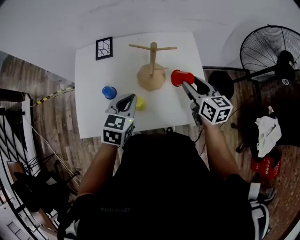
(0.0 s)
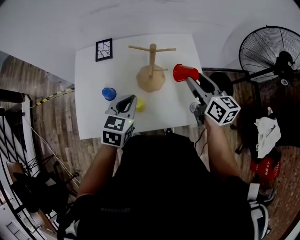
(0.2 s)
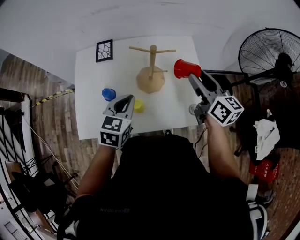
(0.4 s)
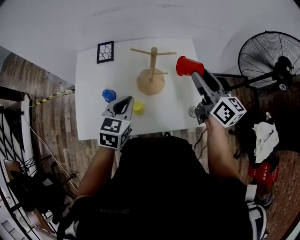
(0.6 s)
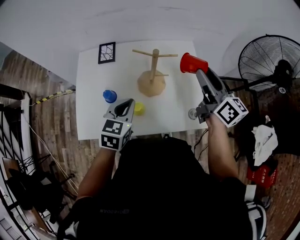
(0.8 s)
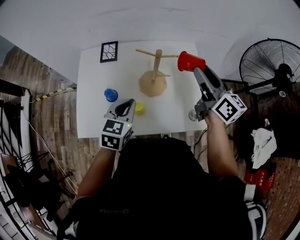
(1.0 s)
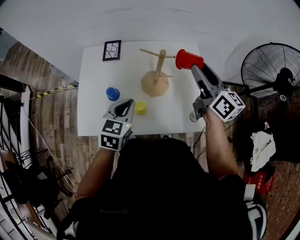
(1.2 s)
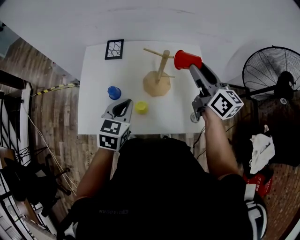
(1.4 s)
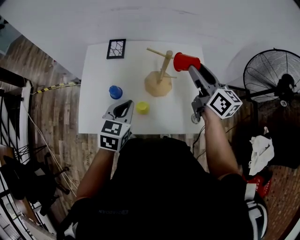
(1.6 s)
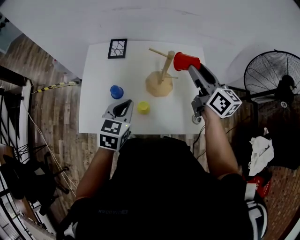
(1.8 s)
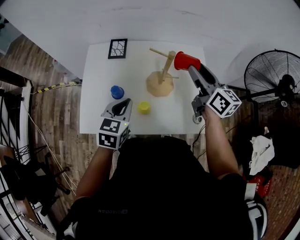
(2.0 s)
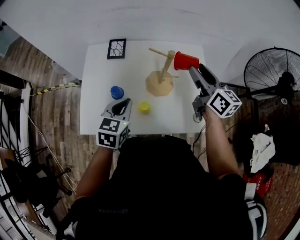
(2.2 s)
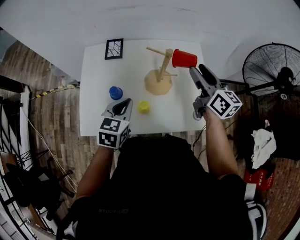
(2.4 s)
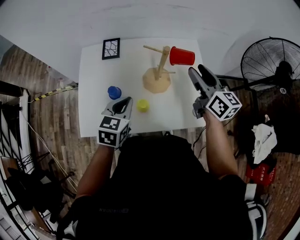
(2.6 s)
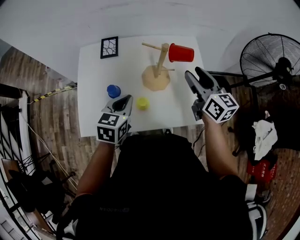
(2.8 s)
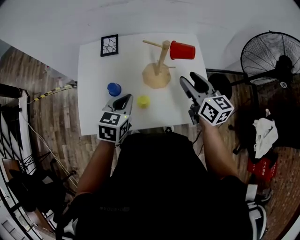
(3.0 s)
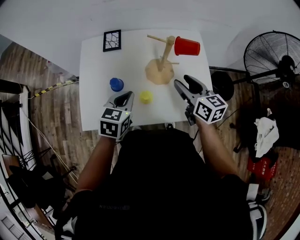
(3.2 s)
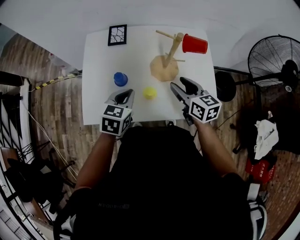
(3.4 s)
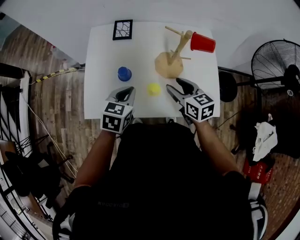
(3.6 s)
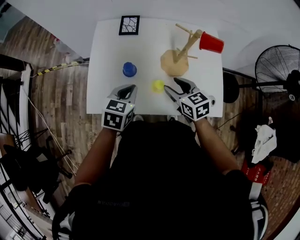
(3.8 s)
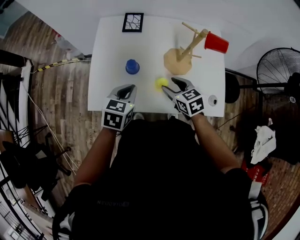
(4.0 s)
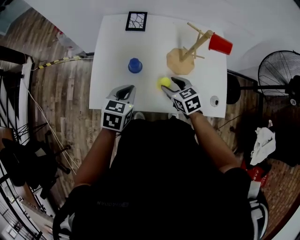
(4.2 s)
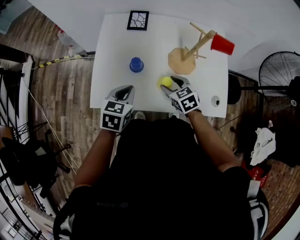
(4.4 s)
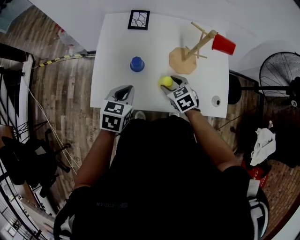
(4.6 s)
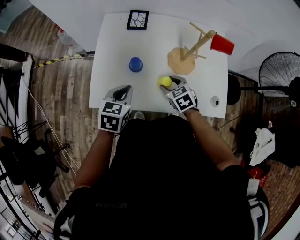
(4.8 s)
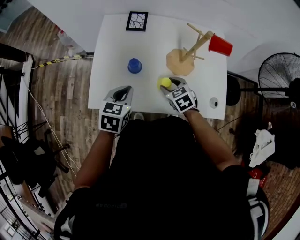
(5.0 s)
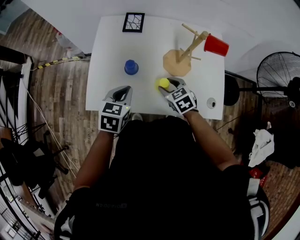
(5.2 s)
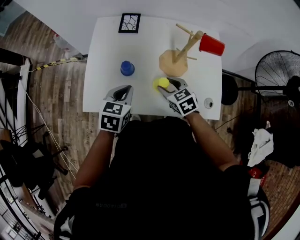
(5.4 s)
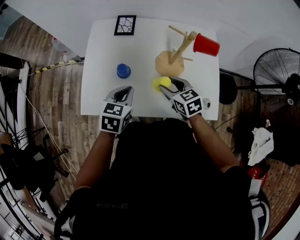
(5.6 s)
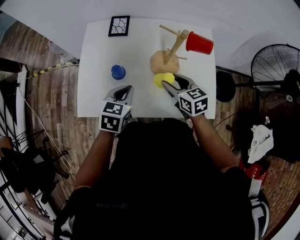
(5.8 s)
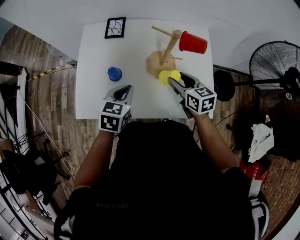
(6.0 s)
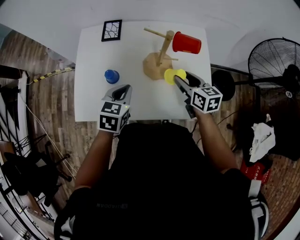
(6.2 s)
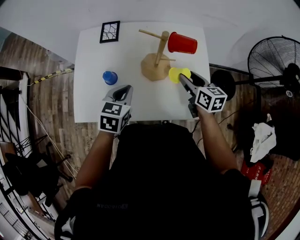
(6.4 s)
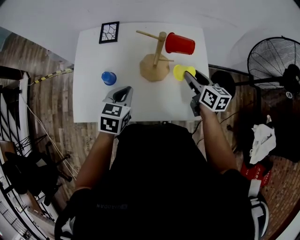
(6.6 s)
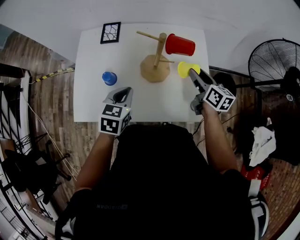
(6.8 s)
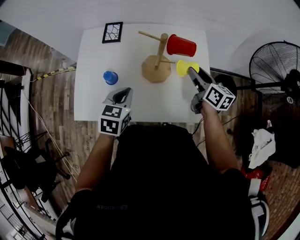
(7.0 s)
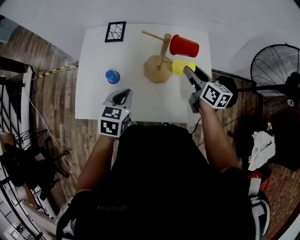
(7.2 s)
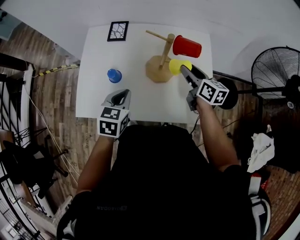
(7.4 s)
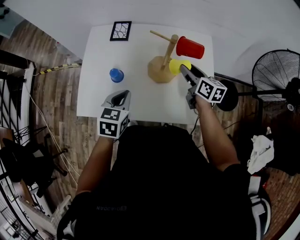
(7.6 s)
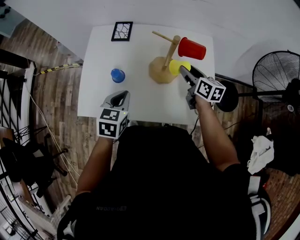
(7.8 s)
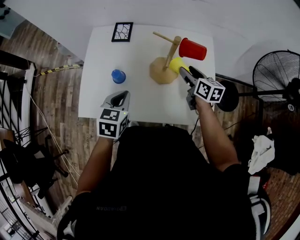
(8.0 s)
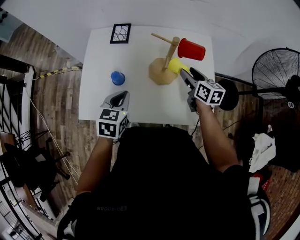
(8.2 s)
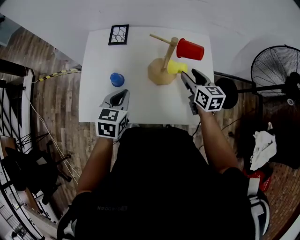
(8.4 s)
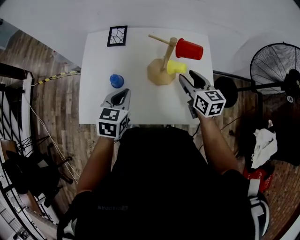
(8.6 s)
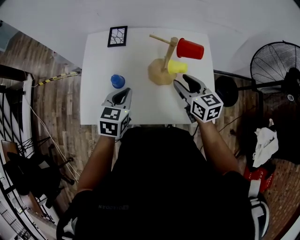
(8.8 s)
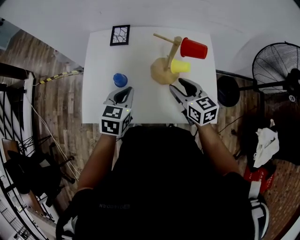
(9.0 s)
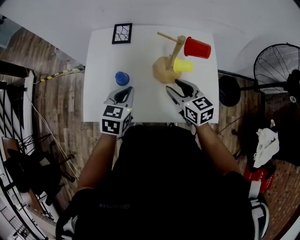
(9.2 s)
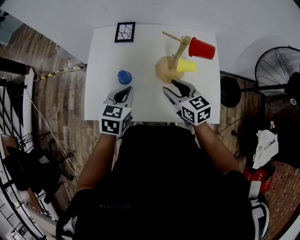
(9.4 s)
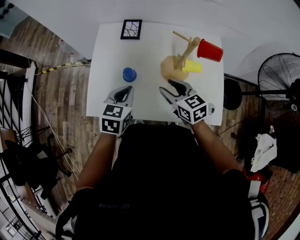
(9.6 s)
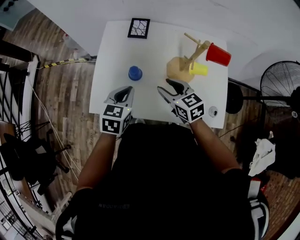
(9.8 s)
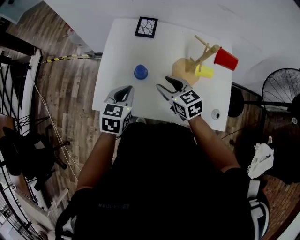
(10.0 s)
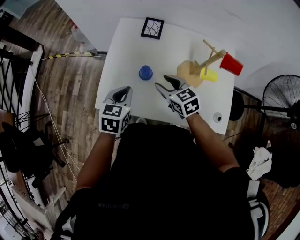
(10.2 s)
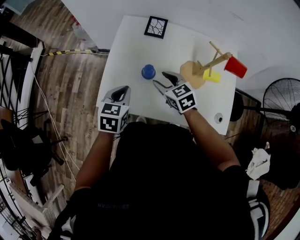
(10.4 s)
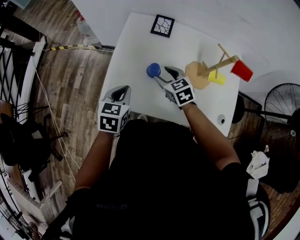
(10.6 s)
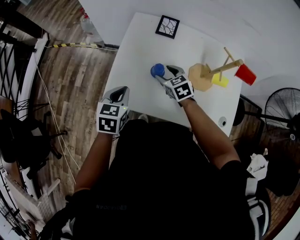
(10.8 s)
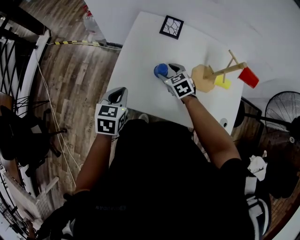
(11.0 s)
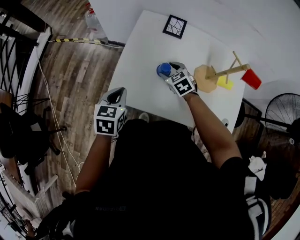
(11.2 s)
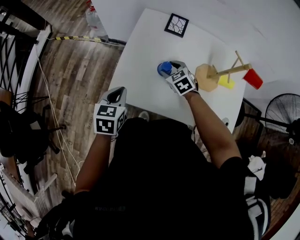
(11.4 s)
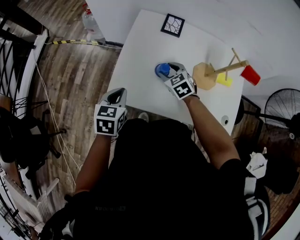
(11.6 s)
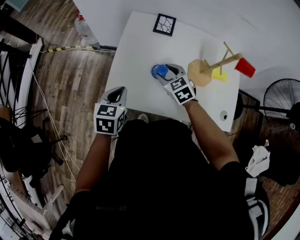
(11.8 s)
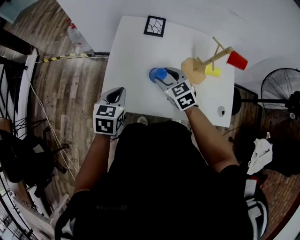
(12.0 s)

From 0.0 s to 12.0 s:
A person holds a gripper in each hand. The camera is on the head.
From 0.0 s to 1.6 s: The right gripper moves upward and forward, roughly 10 cm, and turns by approximately 20 degrees.
From 1.6 s to 3.0 s: The right gripper heads downward and backward, covering approximately 10 cm.
From 3.0 s to 4.4 s: The right gripper moves downward and to the left, about 25 cm, and tips its fingers downward by roughly 30 degrees. Meanwhile the left gripper heads to the left and downward, covering approximately 10 cm.
From 4.4 s to 6.0 s: The left gripper is displaced to the right by about 10 cm. Meanwhile the right gripper heads to the right and upward, covering approximately 15 cm, and rotates about 30 degrees.
From 6.0 s to 7.6 s: The right gripper goes about 10 cm forward and to the right.
From 7.6 s to 9.0 s: The right gripper travels to the left and backward by some 10 cm, and swivels approximately 20 degrees.
From 9.0 s to 10.4 s: The grippers both shift to the left by roughly 20 cm. The right gripper turns by roughly 20 degrees.
From 10.4 s to 12.0 s: The right gripper goes downward and returns, some 10 cm each way. Meanwhile the left gripper shifts about 5 cm to the left.

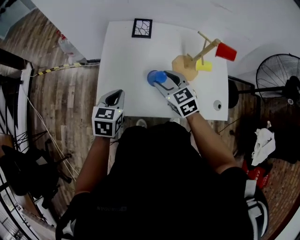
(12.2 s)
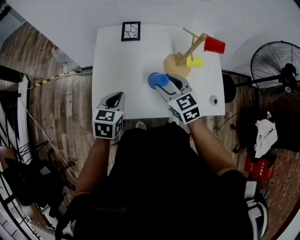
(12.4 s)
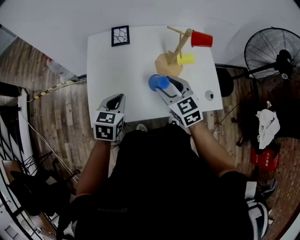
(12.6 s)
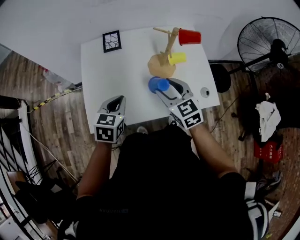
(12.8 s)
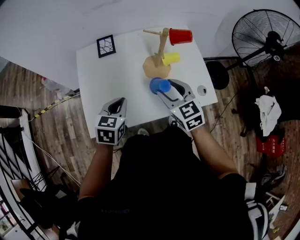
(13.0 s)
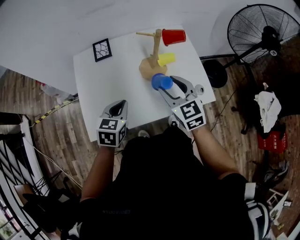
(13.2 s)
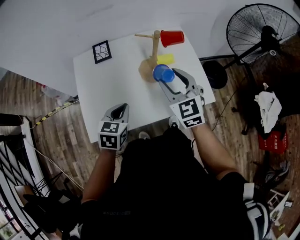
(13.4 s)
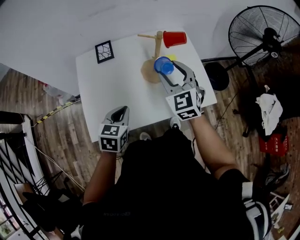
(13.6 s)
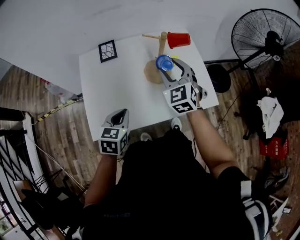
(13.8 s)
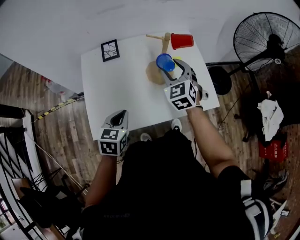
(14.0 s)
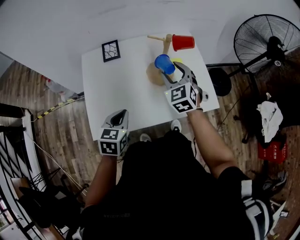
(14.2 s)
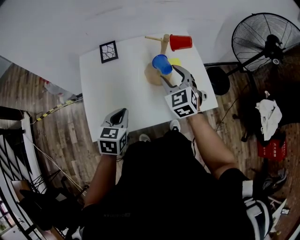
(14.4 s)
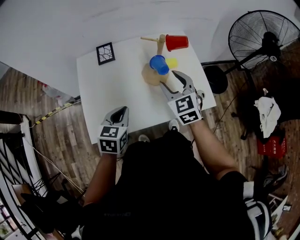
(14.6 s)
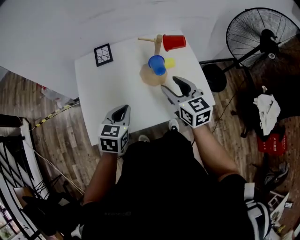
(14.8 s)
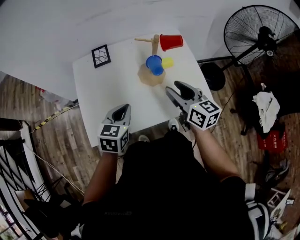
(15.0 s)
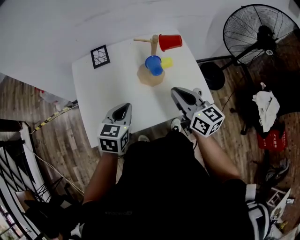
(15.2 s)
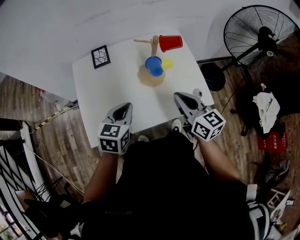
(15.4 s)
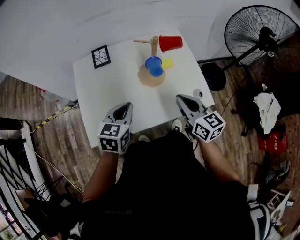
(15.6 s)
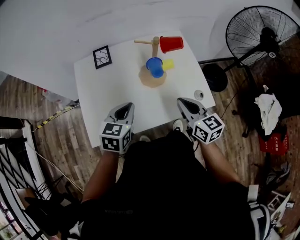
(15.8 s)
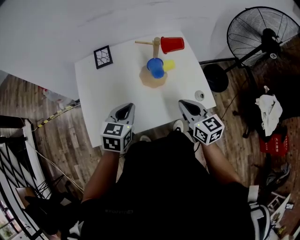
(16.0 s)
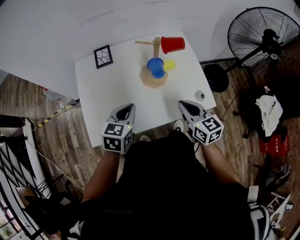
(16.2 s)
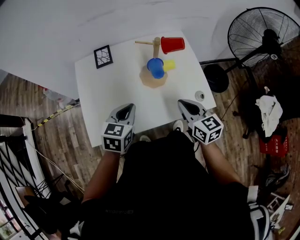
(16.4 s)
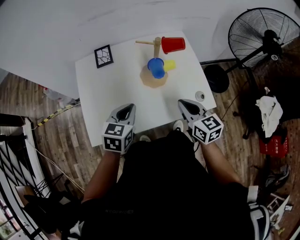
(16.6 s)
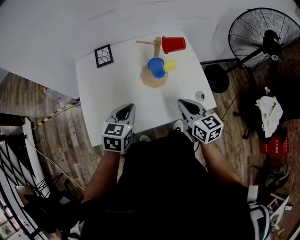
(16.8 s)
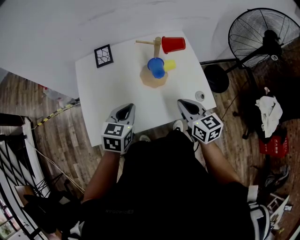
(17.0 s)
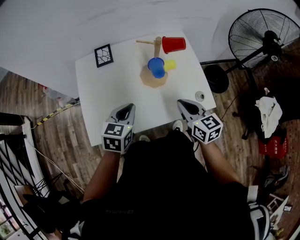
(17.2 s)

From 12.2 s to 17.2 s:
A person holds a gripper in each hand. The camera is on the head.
From 12.2 s to 13.8 s: The left gripper changes place by about 10 cm, while the right gripper shifts by roughly 20 cm, and changes its angle by some 40 degrees.
From 13.8 s to 15.6 s: The left gripper shifts by roughly 5 cm; the right gripper travels backward and to the right by some 15 cm, rolls clockwise, seen from behind, by about 40 degrees, and closes up.
From 15.6 s to 17.2 s: There are only small adjustments of the grippers.

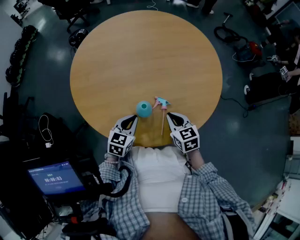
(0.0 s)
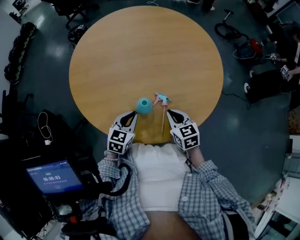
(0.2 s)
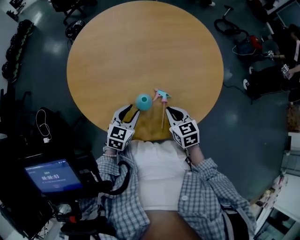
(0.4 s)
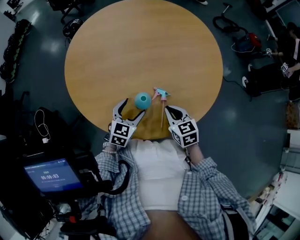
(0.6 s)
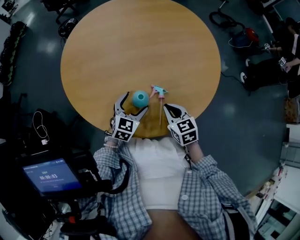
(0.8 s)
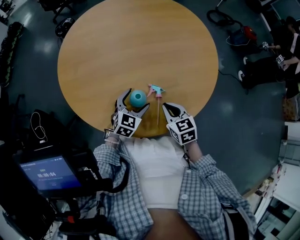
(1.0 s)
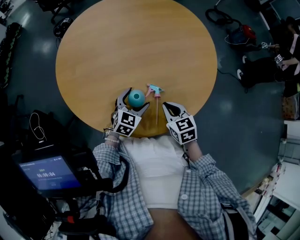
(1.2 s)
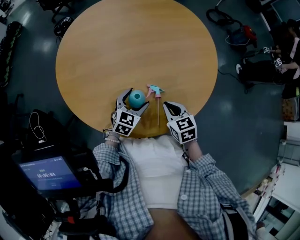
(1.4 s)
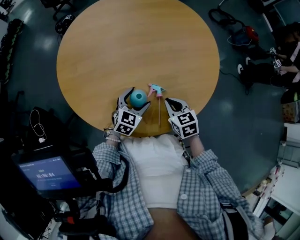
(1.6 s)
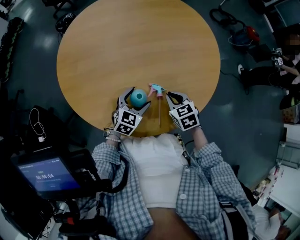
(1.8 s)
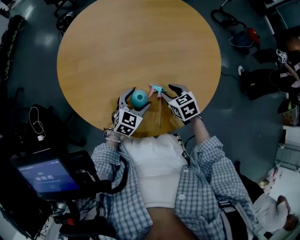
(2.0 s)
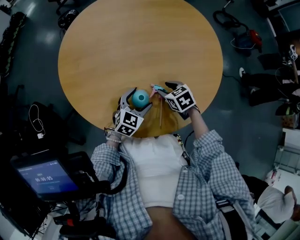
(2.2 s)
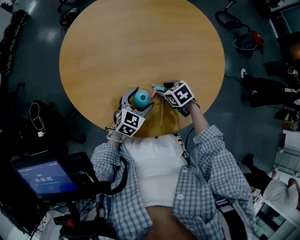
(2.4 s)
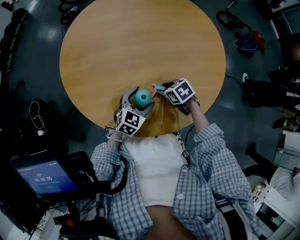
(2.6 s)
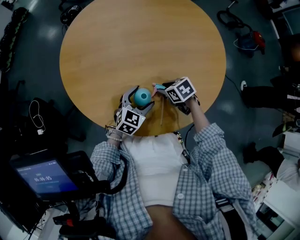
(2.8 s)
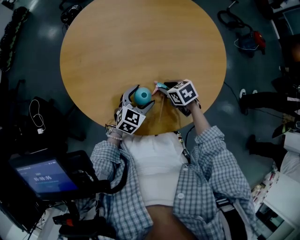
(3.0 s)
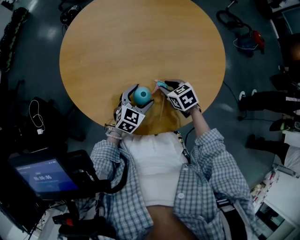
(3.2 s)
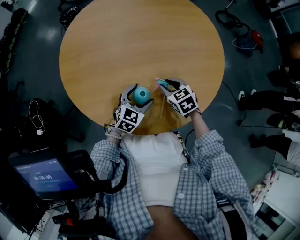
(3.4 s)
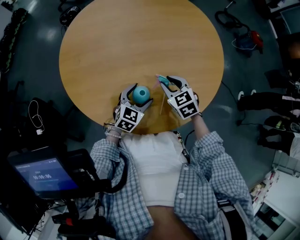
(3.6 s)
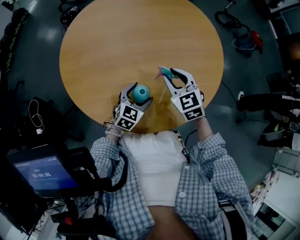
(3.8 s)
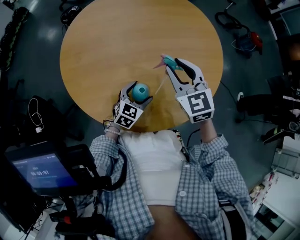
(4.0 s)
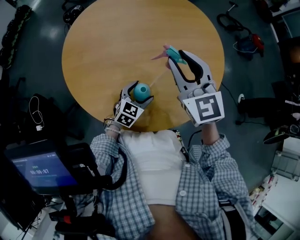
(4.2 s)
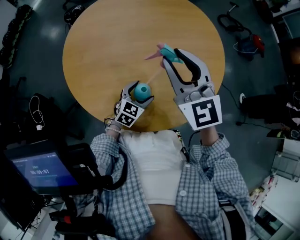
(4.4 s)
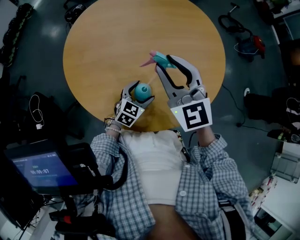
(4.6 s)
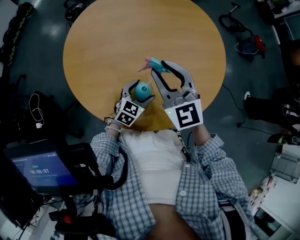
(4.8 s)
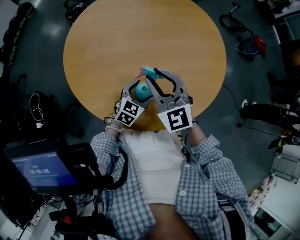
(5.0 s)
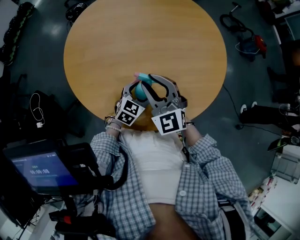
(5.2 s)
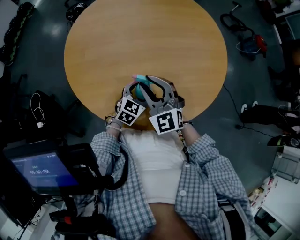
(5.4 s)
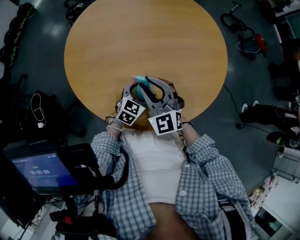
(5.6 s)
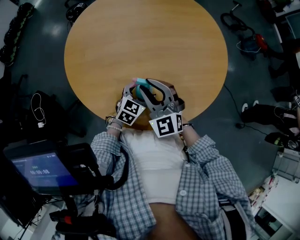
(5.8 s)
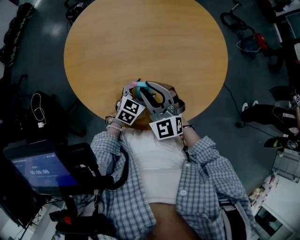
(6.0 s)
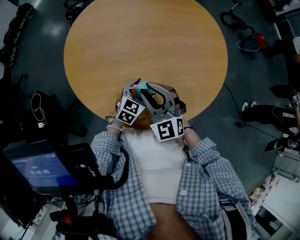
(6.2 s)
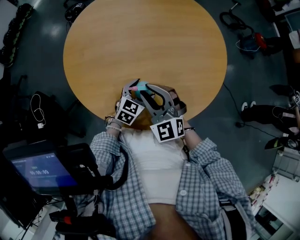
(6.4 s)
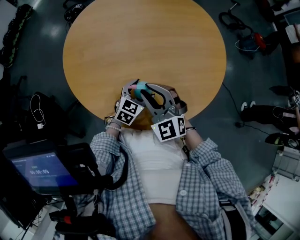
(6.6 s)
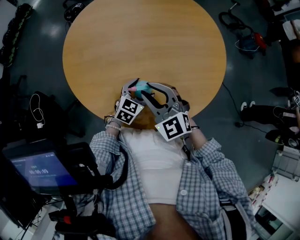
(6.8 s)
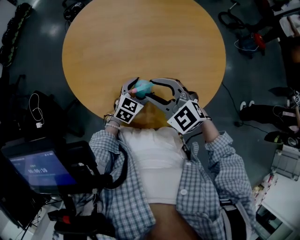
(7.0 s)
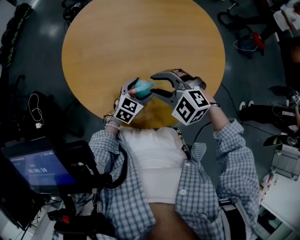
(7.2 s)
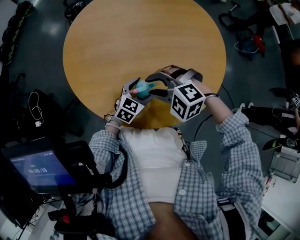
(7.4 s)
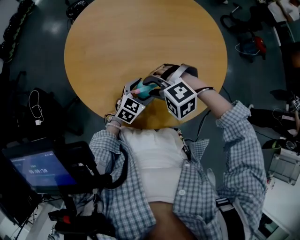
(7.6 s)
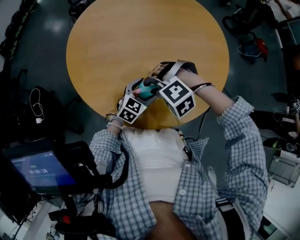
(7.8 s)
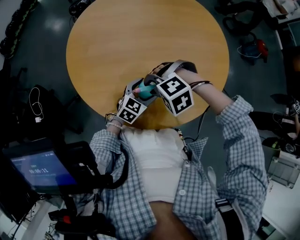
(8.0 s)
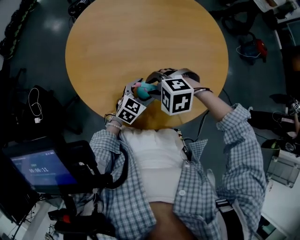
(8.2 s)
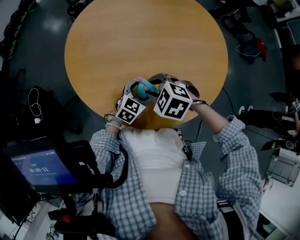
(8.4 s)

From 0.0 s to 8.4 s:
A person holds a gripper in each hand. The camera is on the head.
From 0.0 s to 1.4 s: The left gripper moves forward, approximately 5 cm, and opens its fingers.
From 1.4 s to 2.8 s: The right gripper travels downward and forward by about 10 cm, turns by some 30 degrees, and opens its fingers.
From 2.8 s to 4.2 s: The right gripper is displaced upward by about 30 cm, and tips its fingers upward by some 50 degrees.
From 4.2 s to 5.6 s: The right gripper heads downward, to the left and backward, covering about 15 cm.
From 5.6 s to 7.0 s: The right gripper changes its angle by some 20 degrees.
From 7.0 s to 8.4 s: The right gripper shifts some 5 cm downward, and tilts its fingers some 30 degrees downward.
